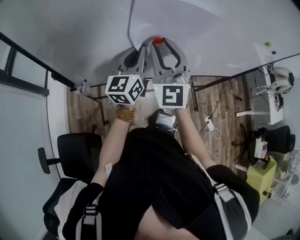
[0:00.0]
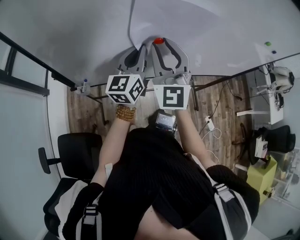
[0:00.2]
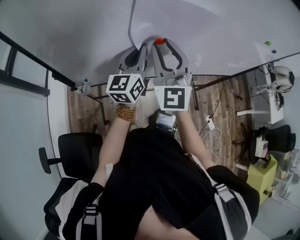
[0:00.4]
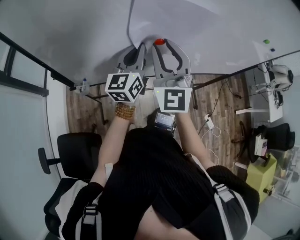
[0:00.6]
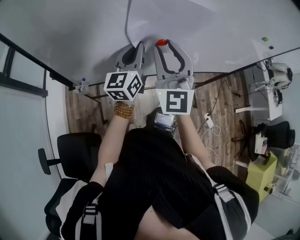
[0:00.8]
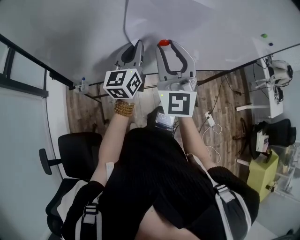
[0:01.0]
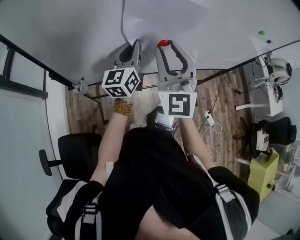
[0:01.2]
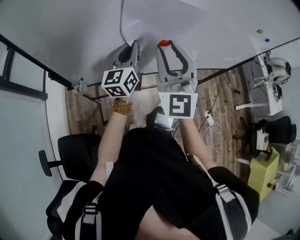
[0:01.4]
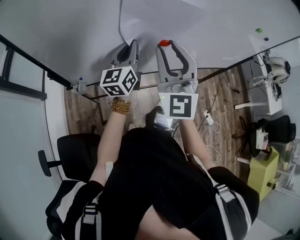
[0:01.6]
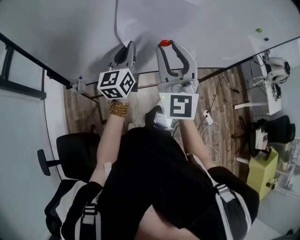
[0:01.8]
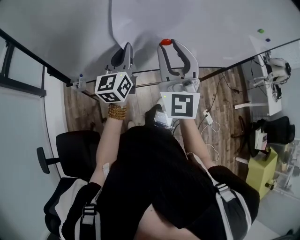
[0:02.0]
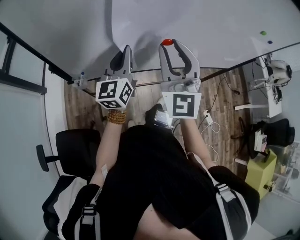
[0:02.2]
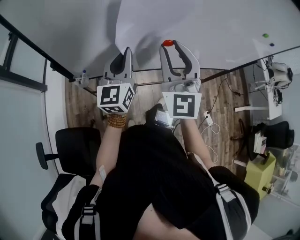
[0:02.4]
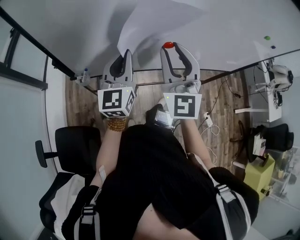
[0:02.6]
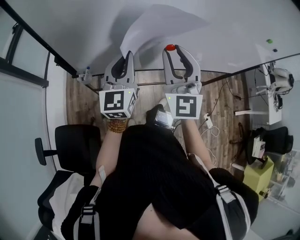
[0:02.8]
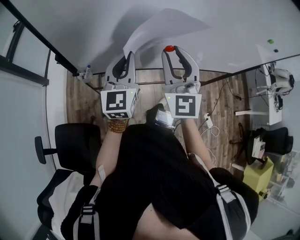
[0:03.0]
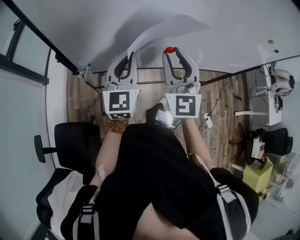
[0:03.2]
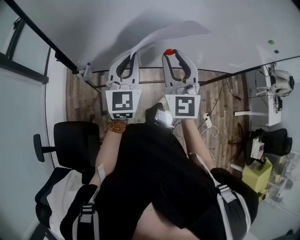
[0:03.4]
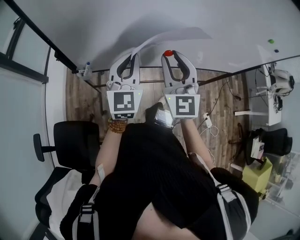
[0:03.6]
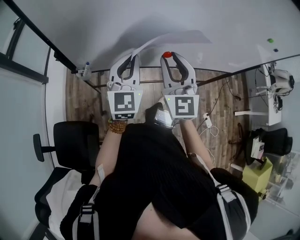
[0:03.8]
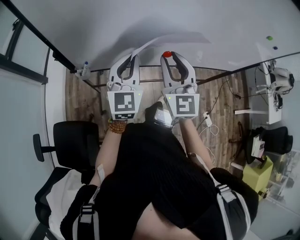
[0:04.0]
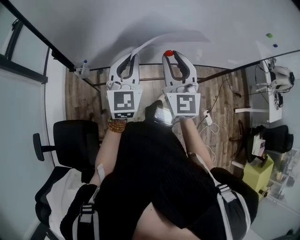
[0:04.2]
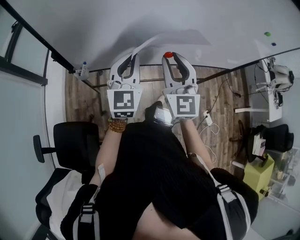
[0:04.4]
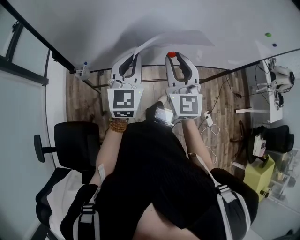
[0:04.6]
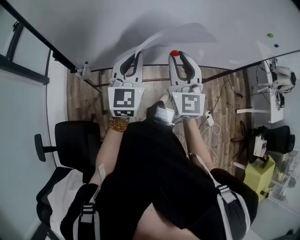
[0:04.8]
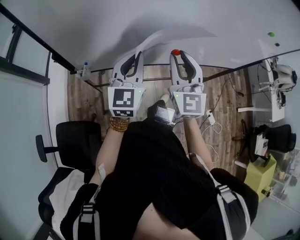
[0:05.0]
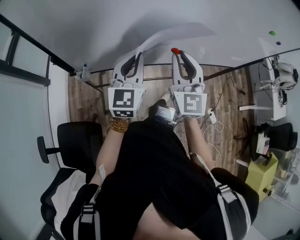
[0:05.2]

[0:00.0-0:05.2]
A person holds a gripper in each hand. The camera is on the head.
0:00.0 to 0:01.8: The right gripper goes some 5 cm backward.
0:01.8 to 0:03.4: The left gripper goes some 10 cm backward, and changes its angle by roughly 30 degrees. Meanwhile the right gripper travels downward by approximately 5 cm.
0:03.4 to 0:05.2: The right gripper shifts approximately 5 cm to the right.

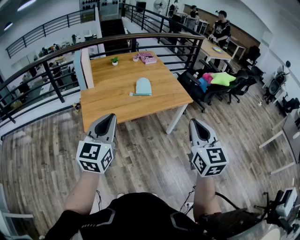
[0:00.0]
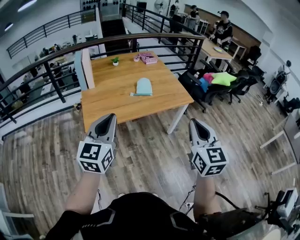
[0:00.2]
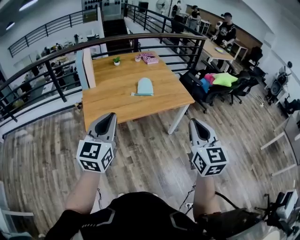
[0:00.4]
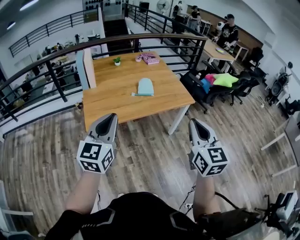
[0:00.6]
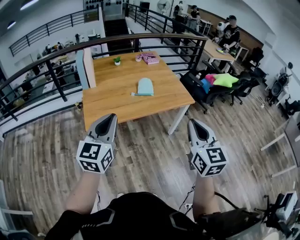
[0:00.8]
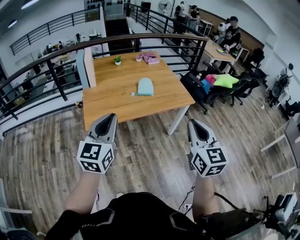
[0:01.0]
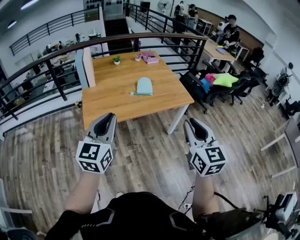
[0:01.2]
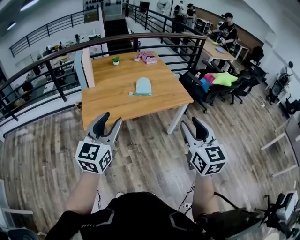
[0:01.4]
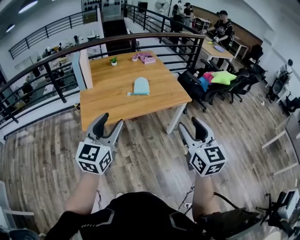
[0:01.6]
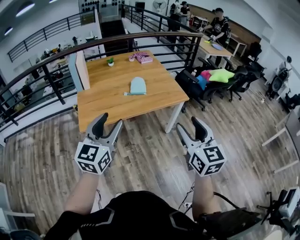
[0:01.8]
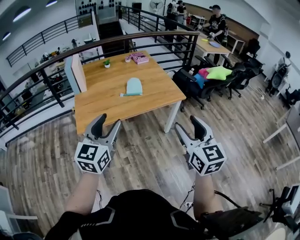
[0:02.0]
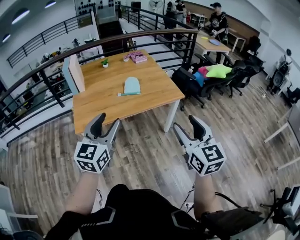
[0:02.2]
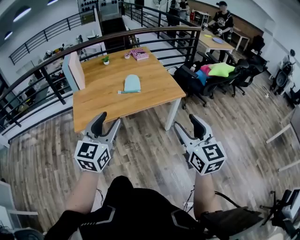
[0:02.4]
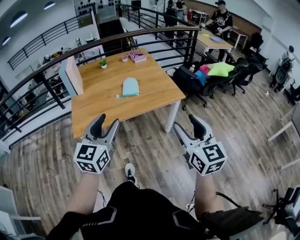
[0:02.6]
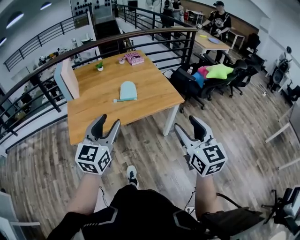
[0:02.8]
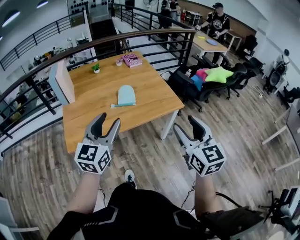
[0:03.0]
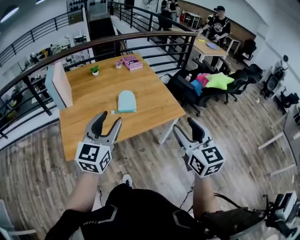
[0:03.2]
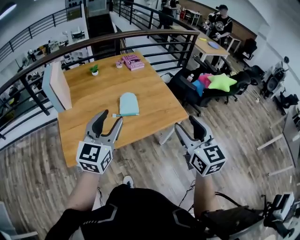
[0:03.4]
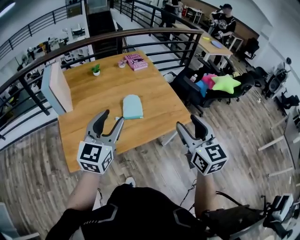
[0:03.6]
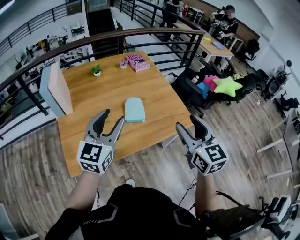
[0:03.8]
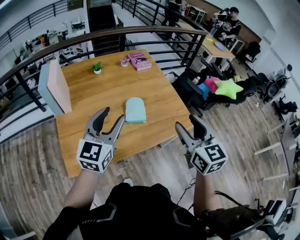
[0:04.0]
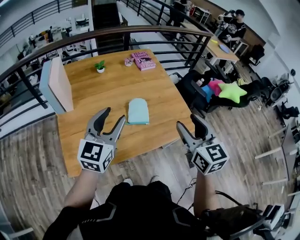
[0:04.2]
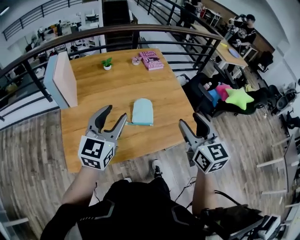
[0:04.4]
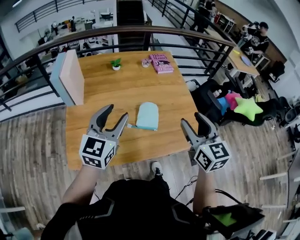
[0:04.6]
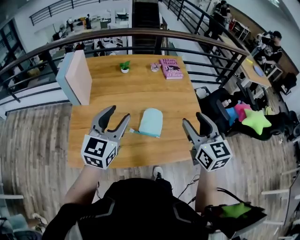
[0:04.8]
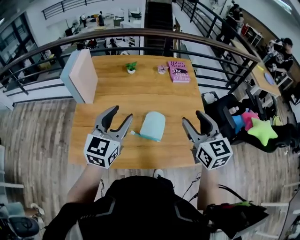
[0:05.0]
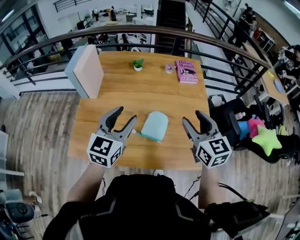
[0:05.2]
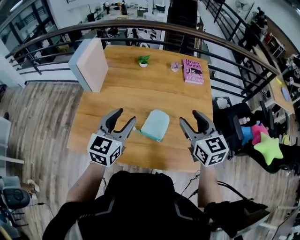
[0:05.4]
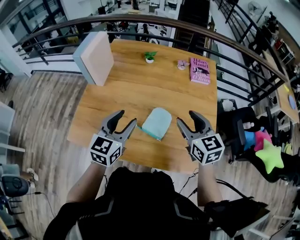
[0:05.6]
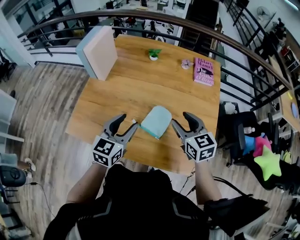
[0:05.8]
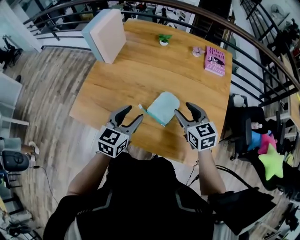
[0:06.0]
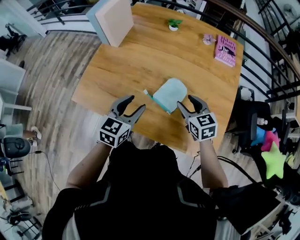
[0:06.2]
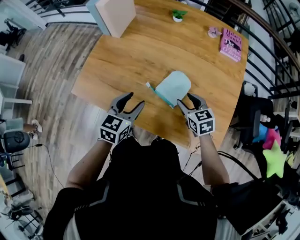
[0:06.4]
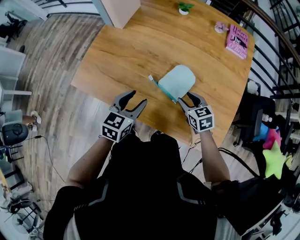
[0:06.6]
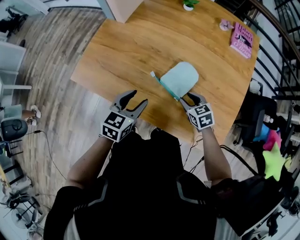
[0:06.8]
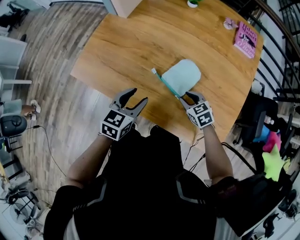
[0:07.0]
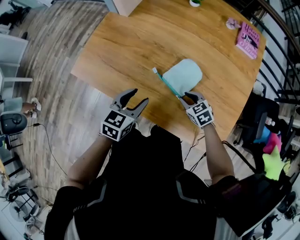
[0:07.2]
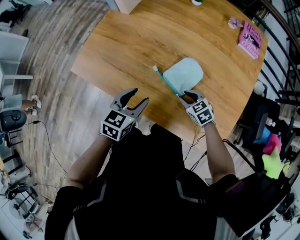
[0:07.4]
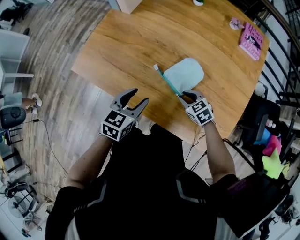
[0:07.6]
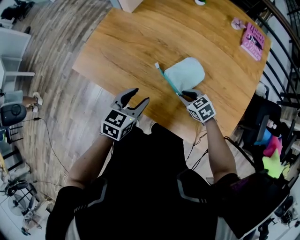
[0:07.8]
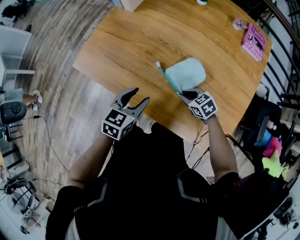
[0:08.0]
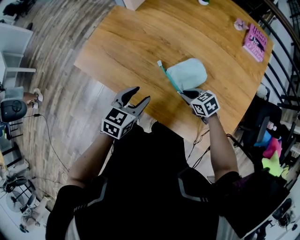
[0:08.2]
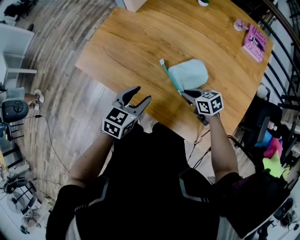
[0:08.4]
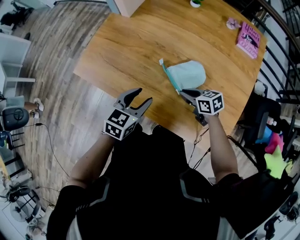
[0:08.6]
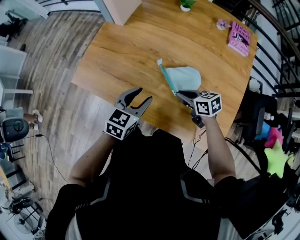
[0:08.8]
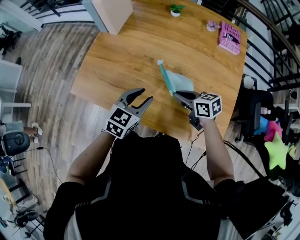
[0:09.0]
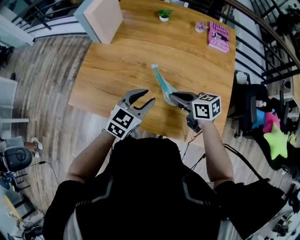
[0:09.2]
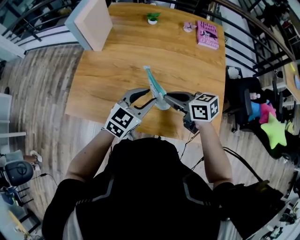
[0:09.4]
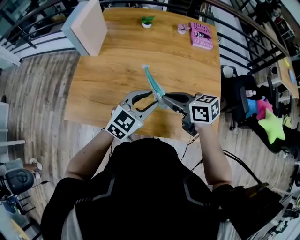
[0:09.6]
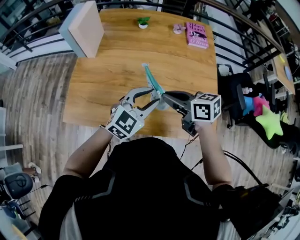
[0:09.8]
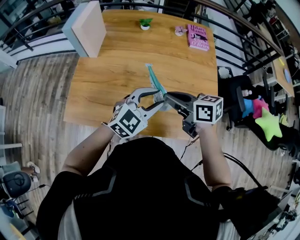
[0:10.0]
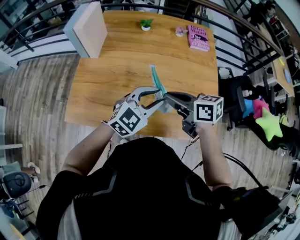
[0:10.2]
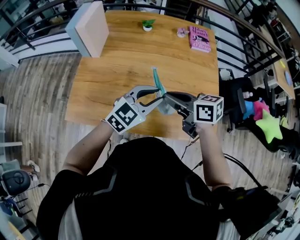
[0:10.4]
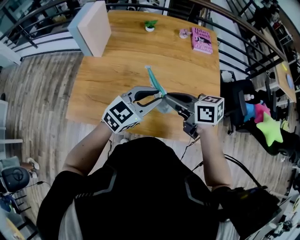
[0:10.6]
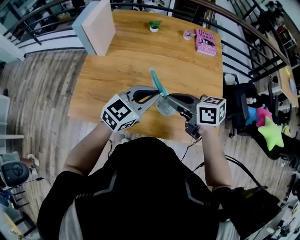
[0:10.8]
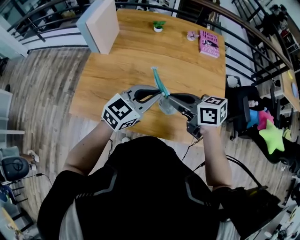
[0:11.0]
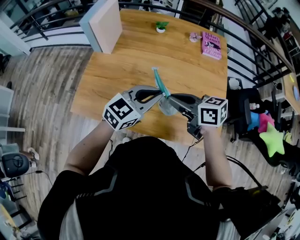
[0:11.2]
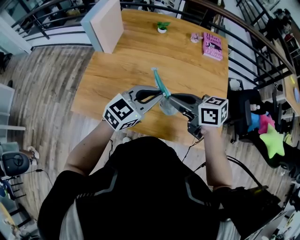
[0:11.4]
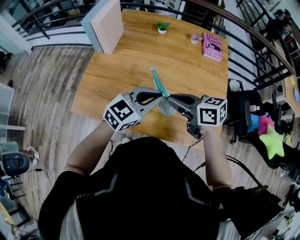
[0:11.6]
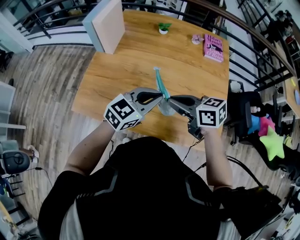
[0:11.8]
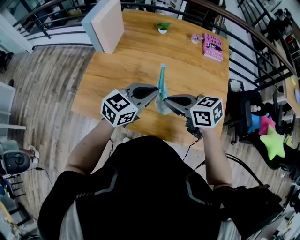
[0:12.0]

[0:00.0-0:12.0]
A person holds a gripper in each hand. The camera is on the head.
0:00.0 to 0:01.6: The left gripper opens, while the right gripper opens its fingers.
0:01.6 to 0:03.0: The grippers both shift forward and to the right by about 15 cm.
0:03.0 to 0:04.4: Both grippers move forward and to the left, approximately 30 cm.
0:04.4 to 0:06.0: The right gripper changes place by about 25 cm, and changes its angle by approximately 50 degrees, while the left gripper is displaced downward by some 15 cm, and swivels roughly 30 degrees.
0:06.0 to 0:07.6: The left gripper moves downward, about 10 cm; the right gripper moves downward, about 25 cm, changes its angle by roughly 40 degrees, and closes.
0:07.6 to 0:09.0: The right gripper is displaced upward by some 10 cm, and swivels about 40 degrees. Meanwhile the left gripper goes some 5 cm upward.
0:09.0 to 0:10.4: The right gripper is displaced upward by approximately 15 cm; the left gripper shifts approximately 10 cm upward and to the right, and rotates about 40 degrees.
0:10.4 to 0:12.0: The left gripper closes up.

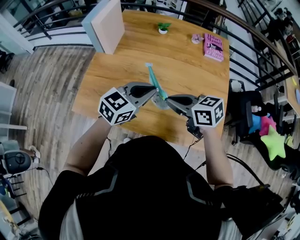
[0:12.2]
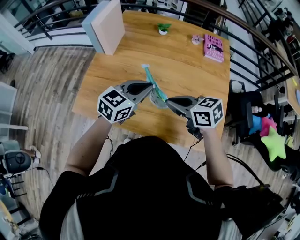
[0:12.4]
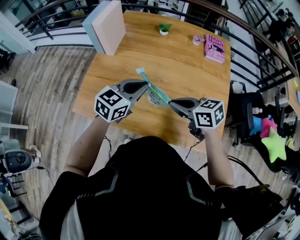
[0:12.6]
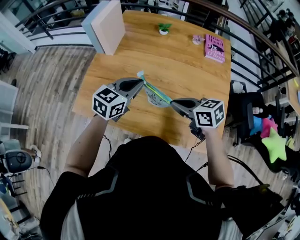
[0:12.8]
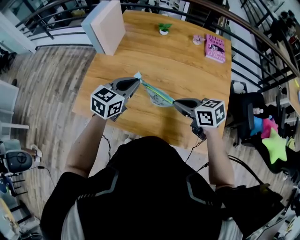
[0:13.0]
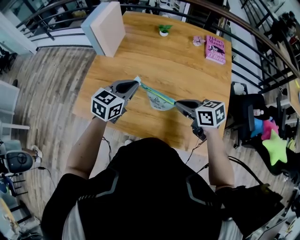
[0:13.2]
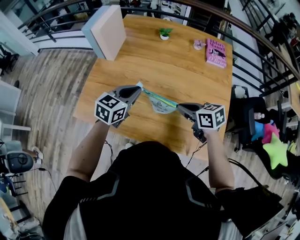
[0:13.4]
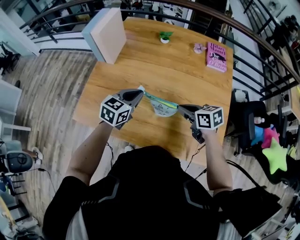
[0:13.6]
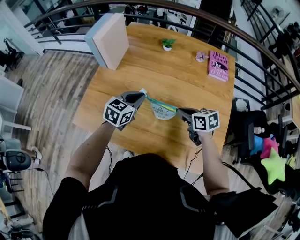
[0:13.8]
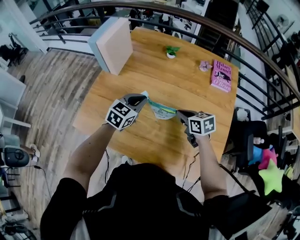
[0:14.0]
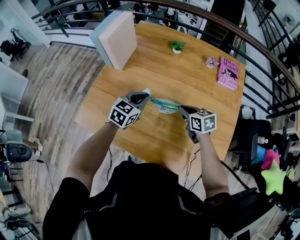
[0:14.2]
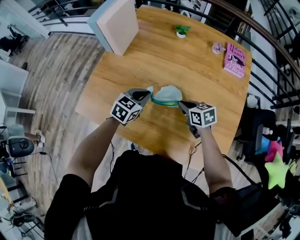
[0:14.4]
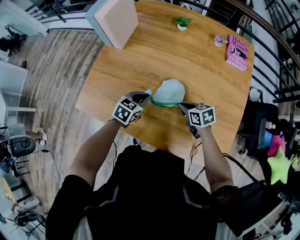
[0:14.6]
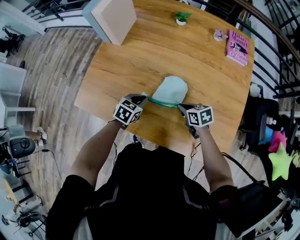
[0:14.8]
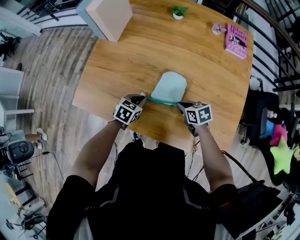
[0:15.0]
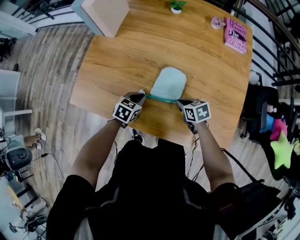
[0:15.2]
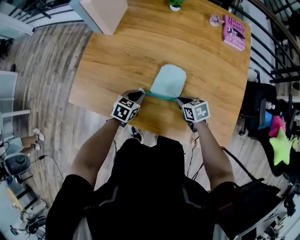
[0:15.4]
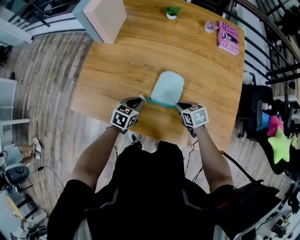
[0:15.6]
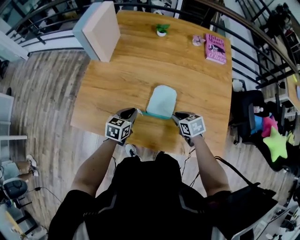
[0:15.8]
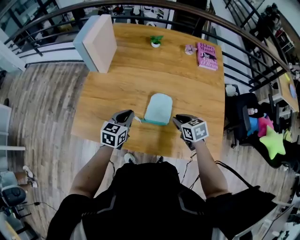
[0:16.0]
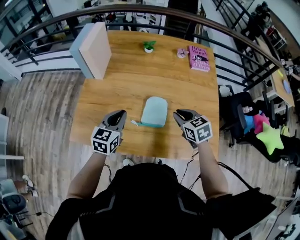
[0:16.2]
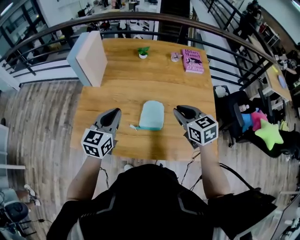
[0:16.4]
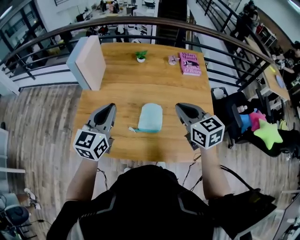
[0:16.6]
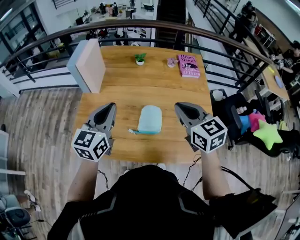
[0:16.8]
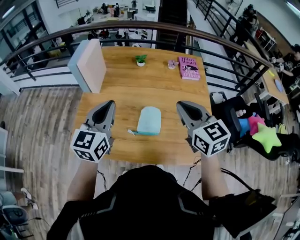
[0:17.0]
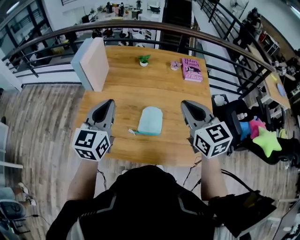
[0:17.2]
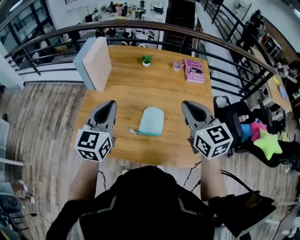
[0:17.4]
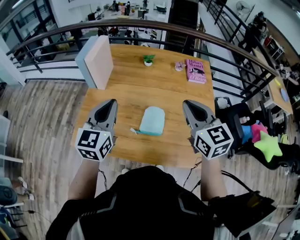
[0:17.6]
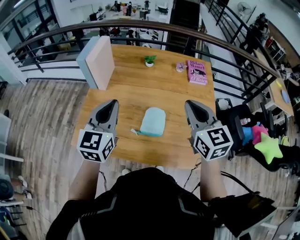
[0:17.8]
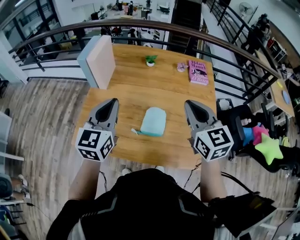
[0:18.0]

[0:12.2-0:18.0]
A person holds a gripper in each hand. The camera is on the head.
0:12.2 to 0:13.6: The right gripper is displaced downward, to the right and forward by roughly 15 cm. The left gripper shifts about 10 cm forward and downward.
0:13.6 to 0:15.0: The two grippers go approximately 20 cm downward. The left gripper turns by approximately 20 degrees.
0:15.0 to 0:16.6: The two grippers go roughly 35 cm upward. The right gripper swivels approximately 40 degrees. The left gripper points its fingers approximately 40 degrees further upward.
0:16.6 to 0:18.0: The left gripper travels upward by approximately 5 cm; the right gripper moves upward, roughly 10 cm.
